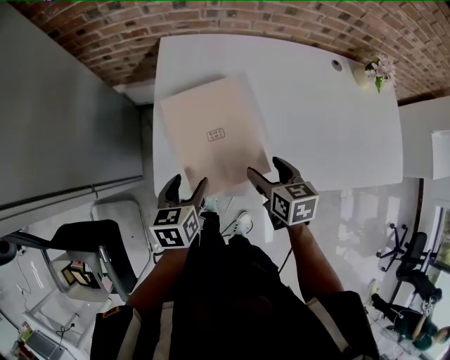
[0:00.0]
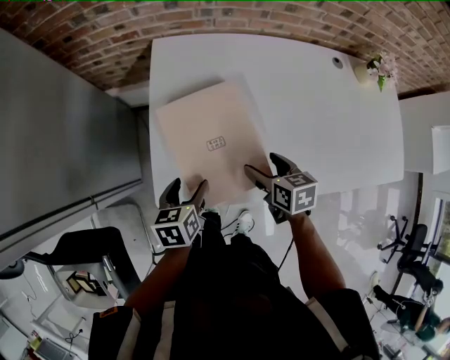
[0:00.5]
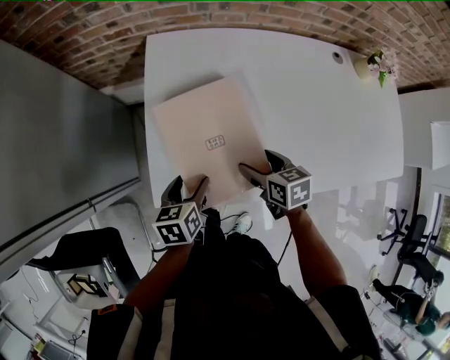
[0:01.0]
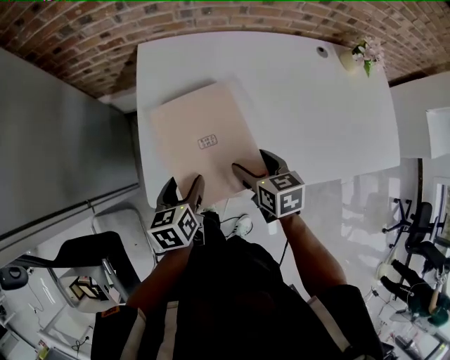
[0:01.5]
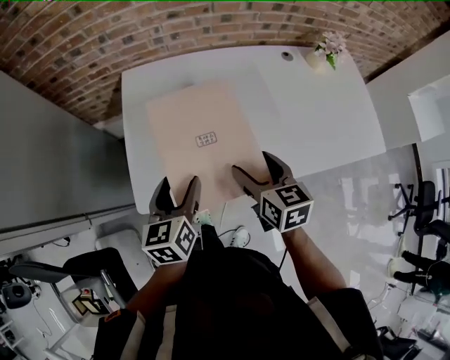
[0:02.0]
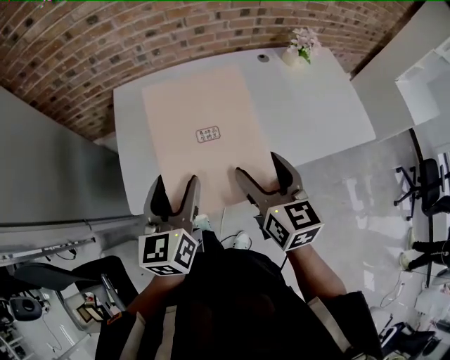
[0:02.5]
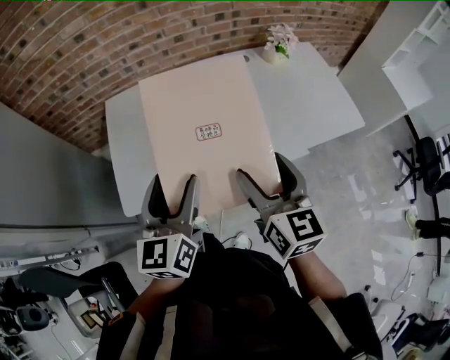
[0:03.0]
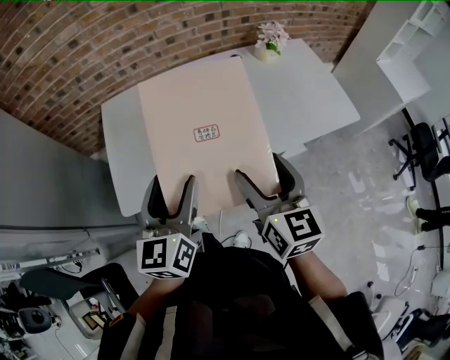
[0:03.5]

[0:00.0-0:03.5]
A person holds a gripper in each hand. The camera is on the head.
0:00.0 to 0:02.0: The grippers both shift upward by roughly 10 cm.
0:02.0 to 0:03.5: The left gripper shifts about 20 cm to the right, upward and backward, and changes its angle by some 20 degrees. The right gripper travels to the right, backward and upward by some 25 cm, and turns by some 20 degrees.

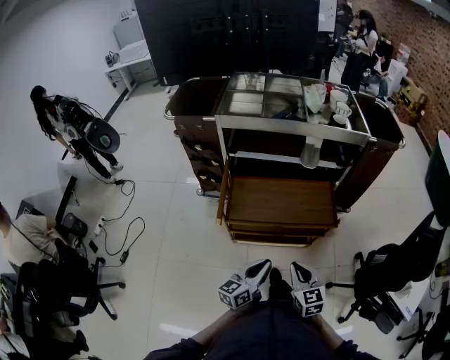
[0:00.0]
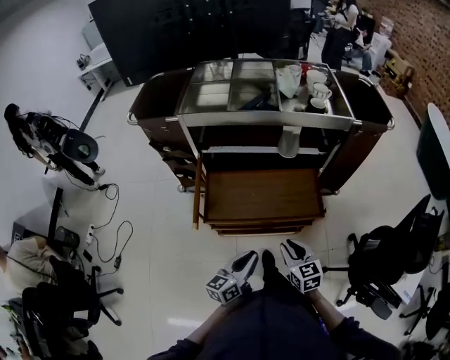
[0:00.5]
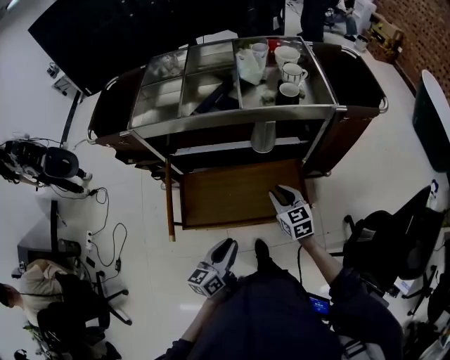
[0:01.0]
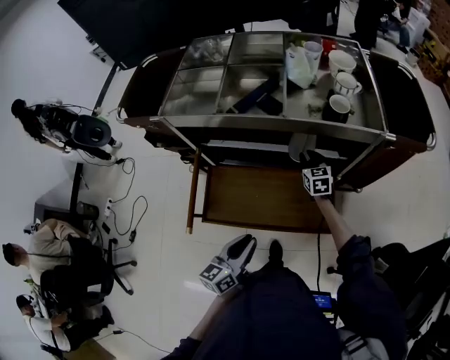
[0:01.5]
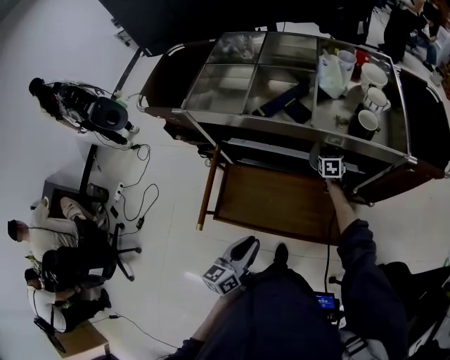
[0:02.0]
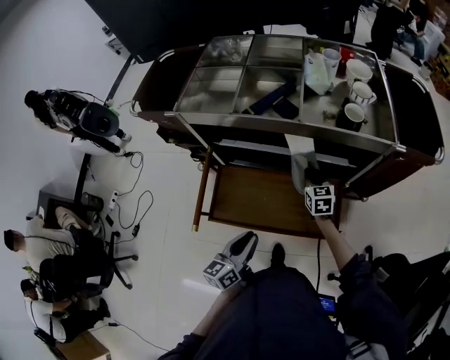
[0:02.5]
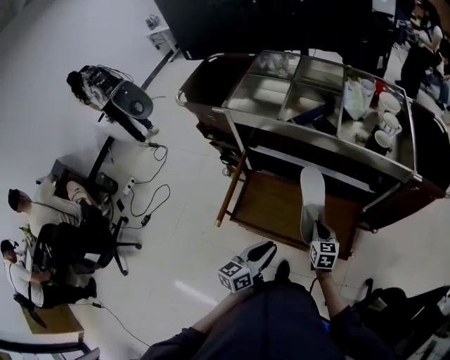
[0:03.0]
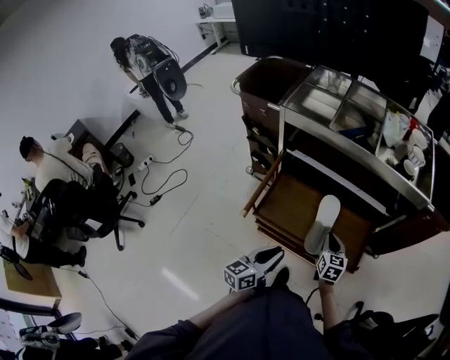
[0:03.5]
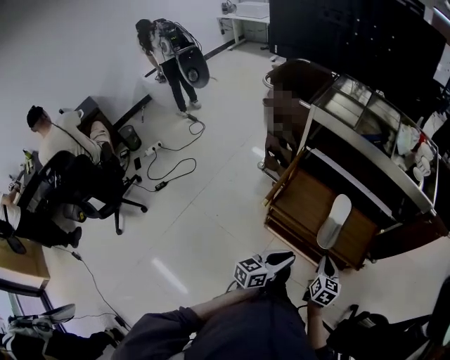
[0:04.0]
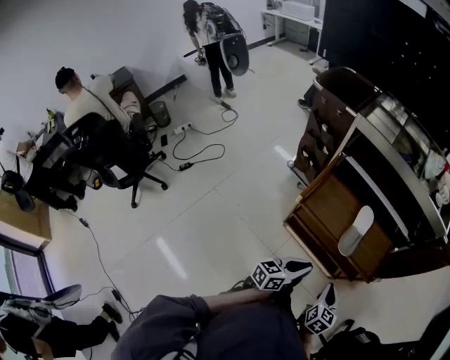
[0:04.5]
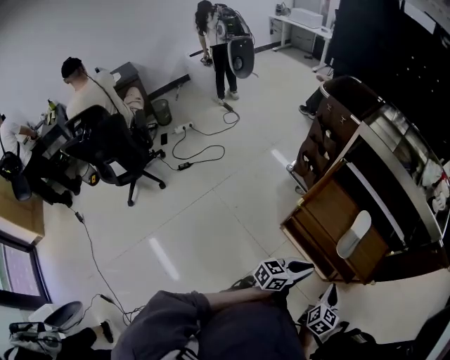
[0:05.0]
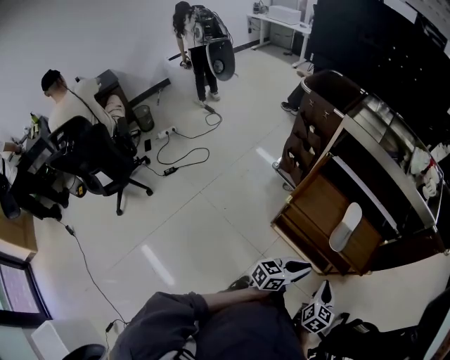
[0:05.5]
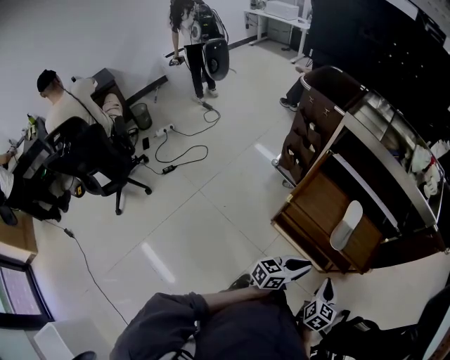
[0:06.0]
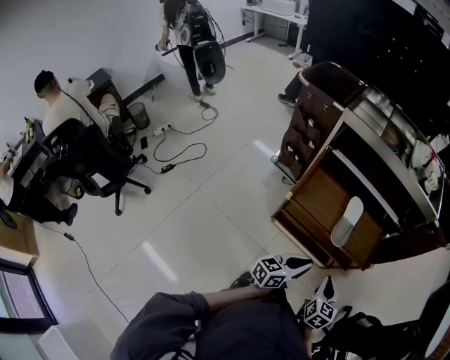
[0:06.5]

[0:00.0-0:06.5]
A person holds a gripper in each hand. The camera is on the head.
0:00.0 to 0:02.0: The right gripper is displaced forward by about 60 cm, and rotates about 20 degrees; the left gripper goes approximately 25 cm forward.
0:02.0 to 0:04.5: The right gripper moves backward, some 60 cm. Meanwhile the left gripper goes some 25 cm backward.
0:04.5 to 0:06.5: The grippers move only a little.

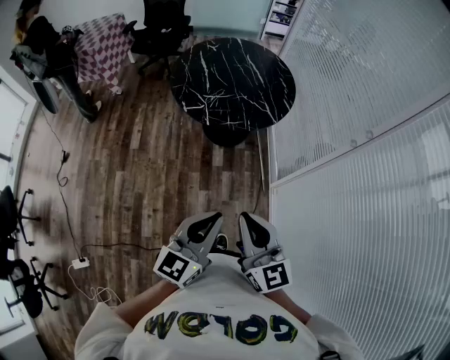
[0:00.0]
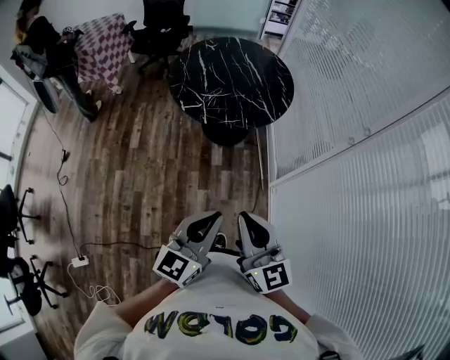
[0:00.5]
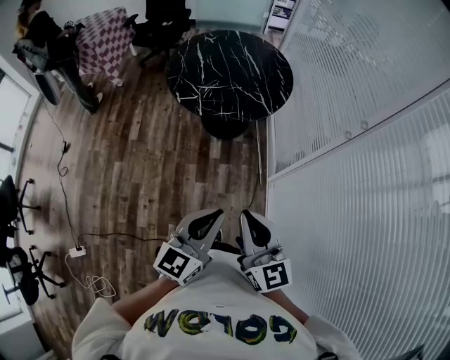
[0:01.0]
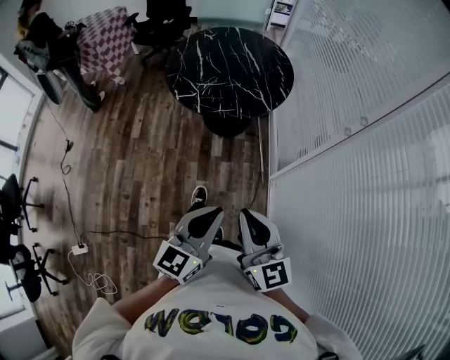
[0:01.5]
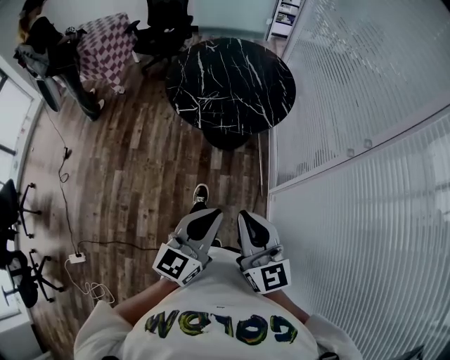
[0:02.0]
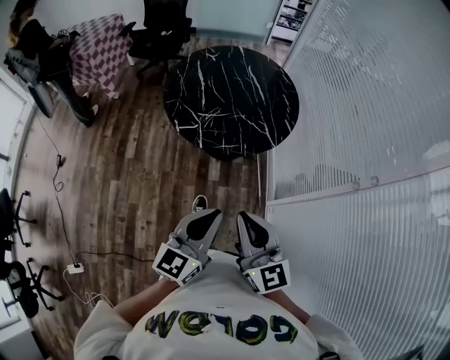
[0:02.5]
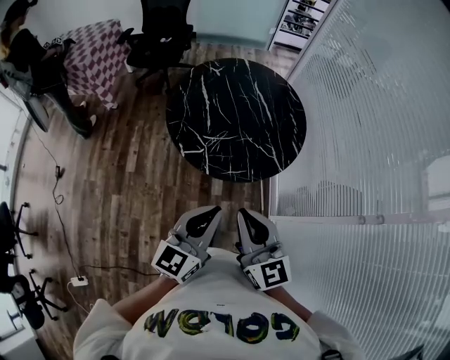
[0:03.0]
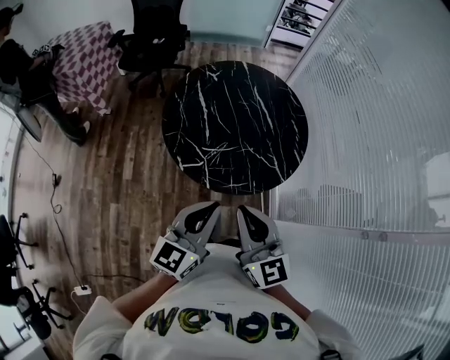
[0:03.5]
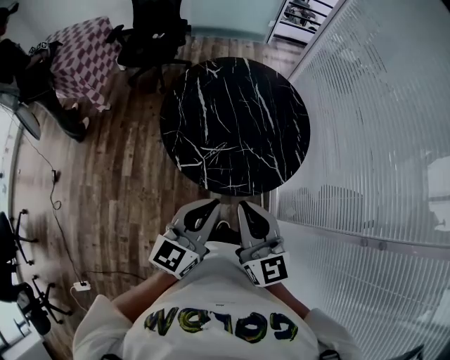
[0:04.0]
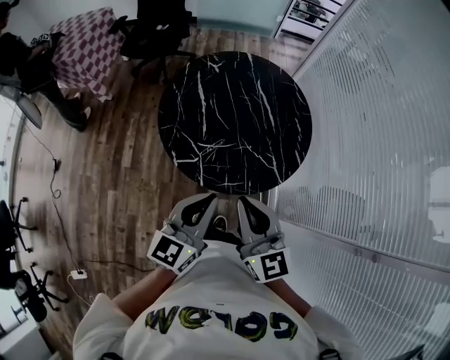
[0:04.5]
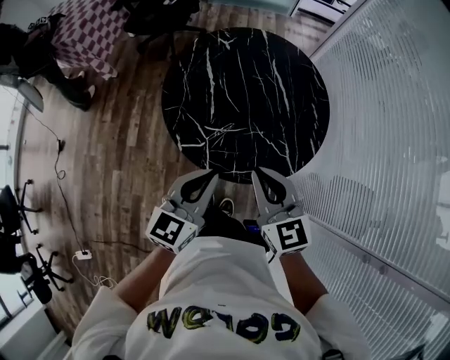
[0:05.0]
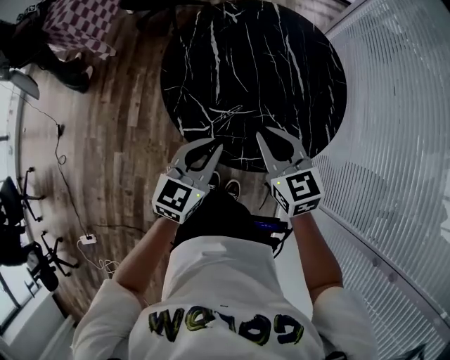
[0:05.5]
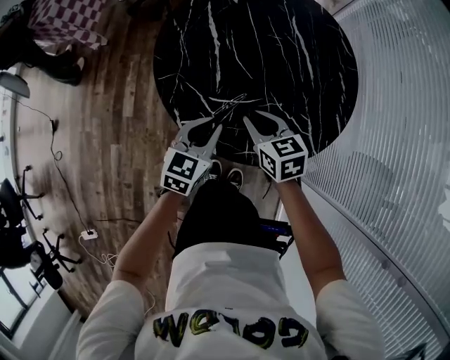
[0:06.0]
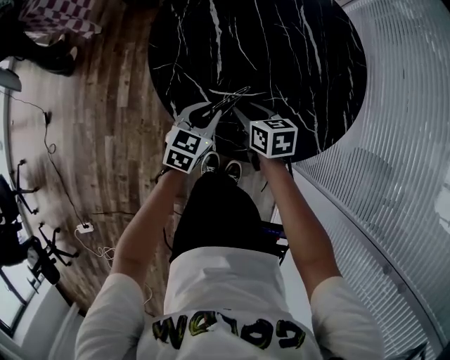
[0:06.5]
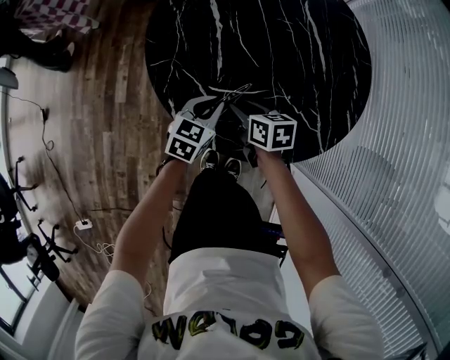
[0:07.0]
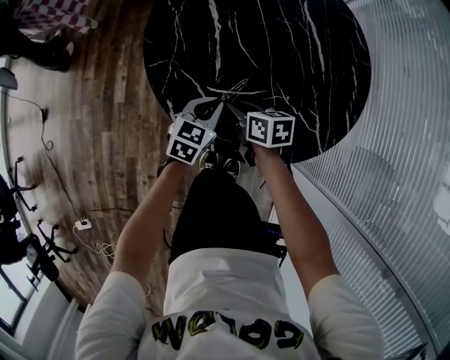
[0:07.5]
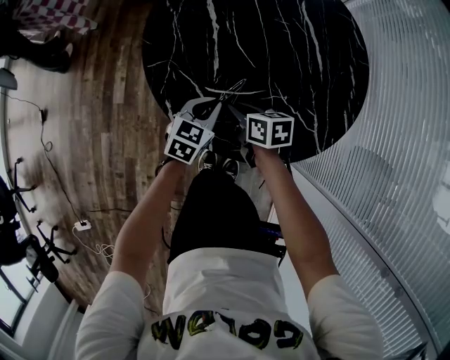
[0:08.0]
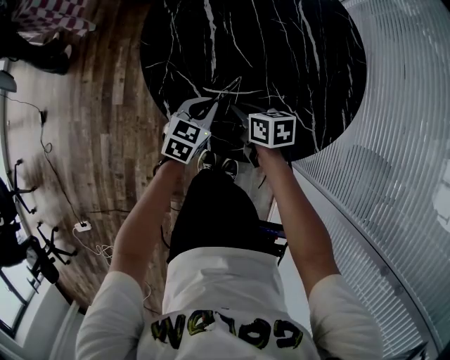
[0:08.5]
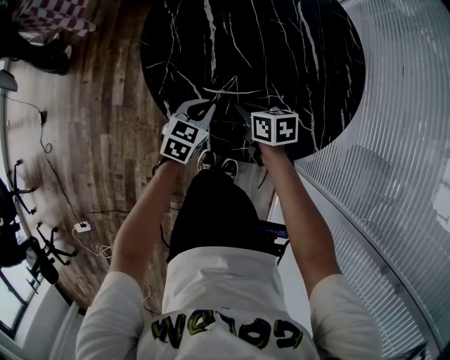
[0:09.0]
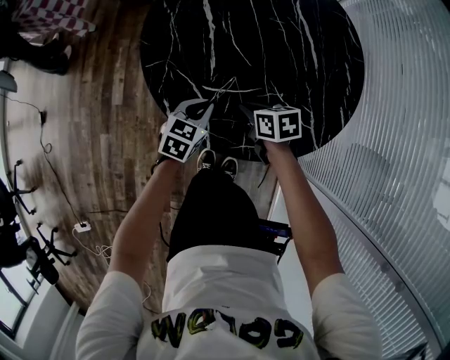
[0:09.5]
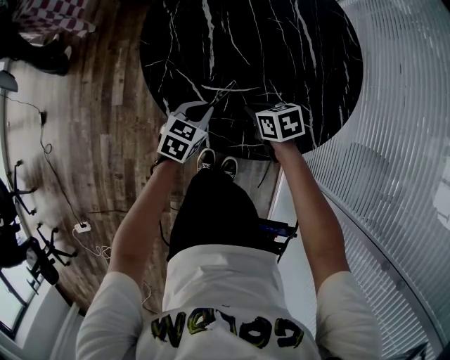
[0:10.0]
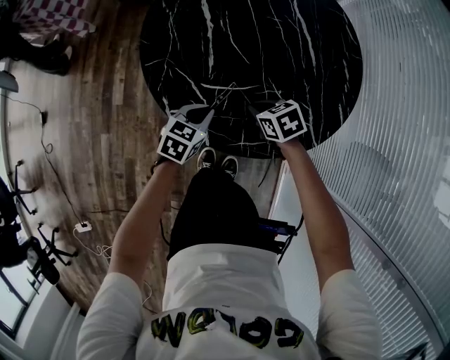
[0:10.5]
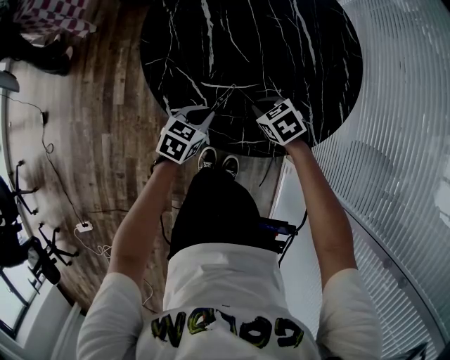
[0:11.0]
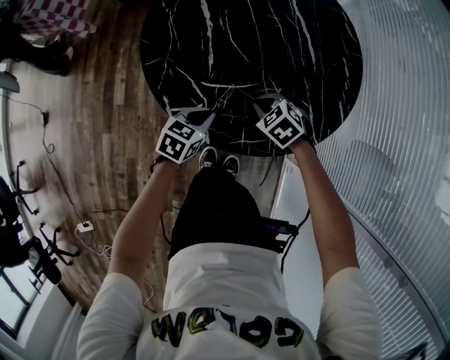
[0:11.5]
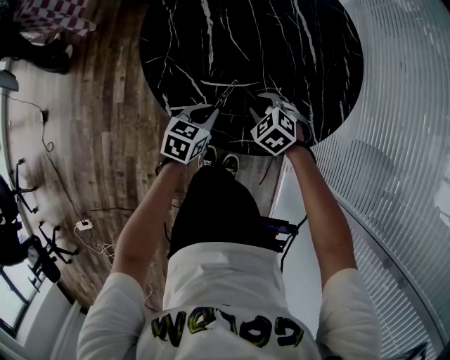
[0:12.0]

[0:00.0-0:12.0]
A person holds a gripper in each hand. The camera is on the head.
0:00.0 to 0:02.0: The two grippers go some 5 cm to the right.
0:02.0 to 0:04.0: Both grippers move forward, about 35 cm.
0:04.0 to 0:06.0: The grippers both shift downward and forward by approximately 35 cm. The left gripper rotates about 30 degrees, while the right gripper points its fingers about 30 degrees further downward.
0:06.0 to 0:08.0: The two grippers go approximately 10 cm downward. The right gripper turns by roughly 30 degrees.
0:08.0 to 0:10.0: The right gripper is displaced to the right by roughly 5 cm.
0:10.0 to 0:12.0: The right gripper twists about 50 degrees counterclockwise, seen from behind, and opens up.

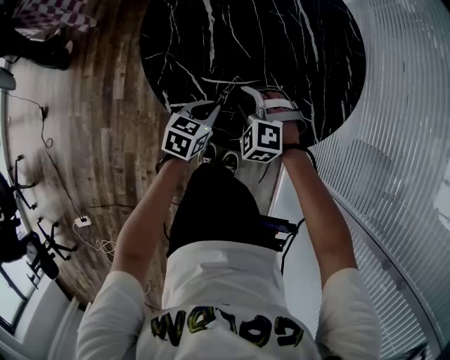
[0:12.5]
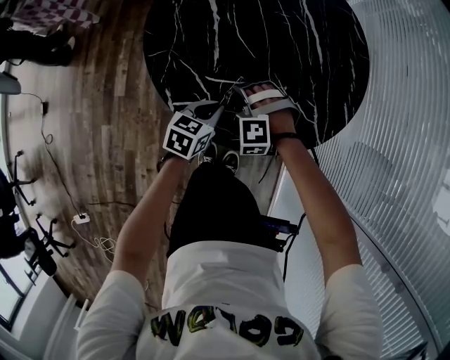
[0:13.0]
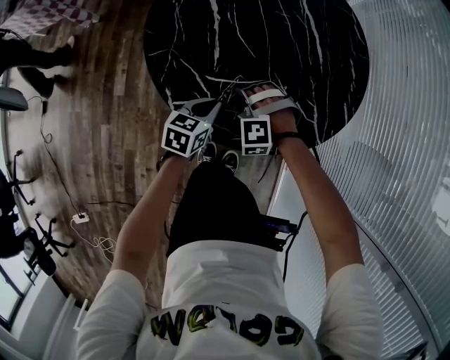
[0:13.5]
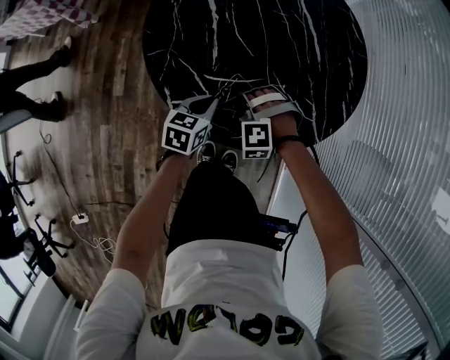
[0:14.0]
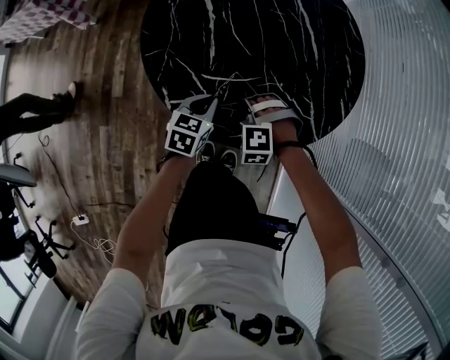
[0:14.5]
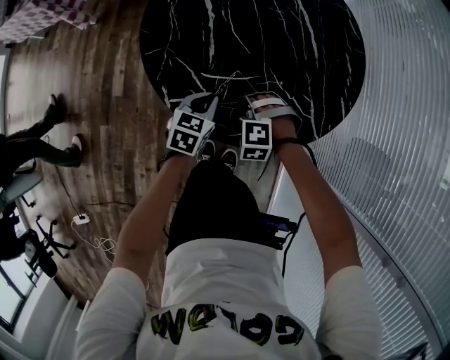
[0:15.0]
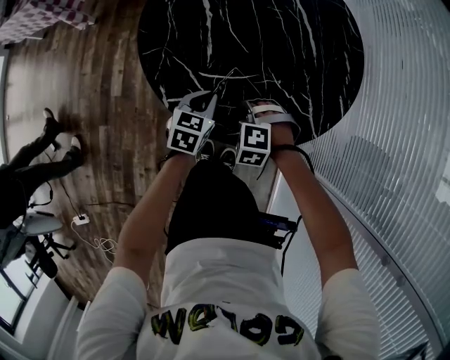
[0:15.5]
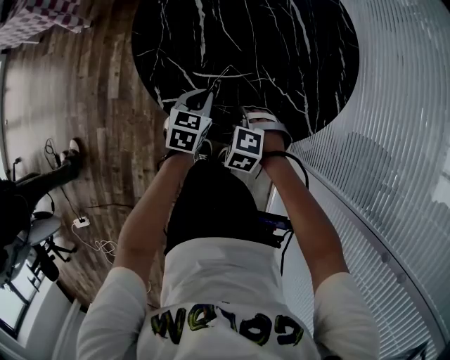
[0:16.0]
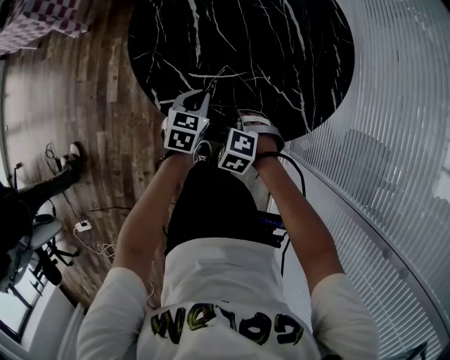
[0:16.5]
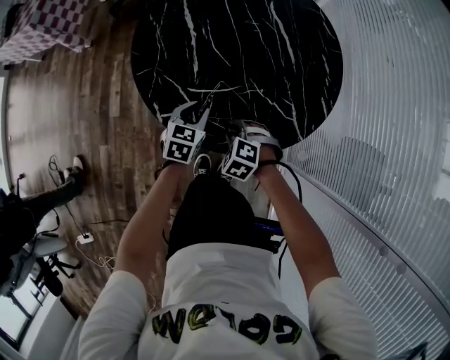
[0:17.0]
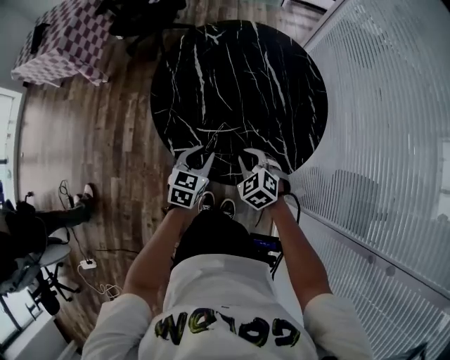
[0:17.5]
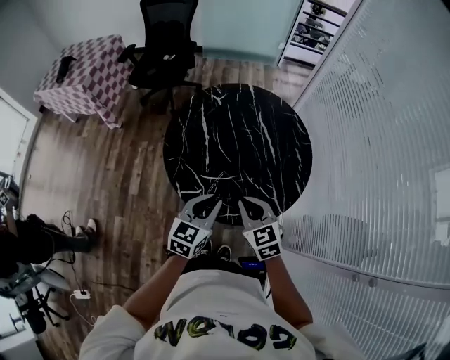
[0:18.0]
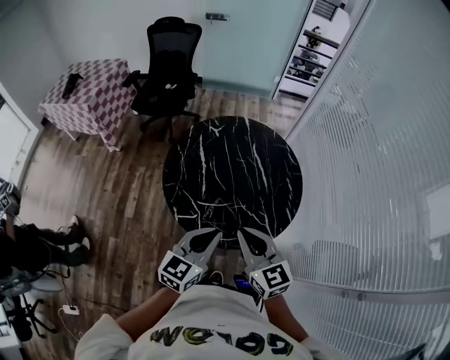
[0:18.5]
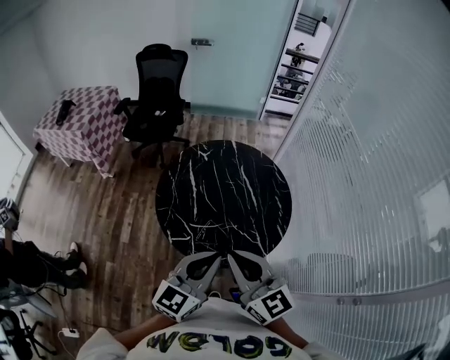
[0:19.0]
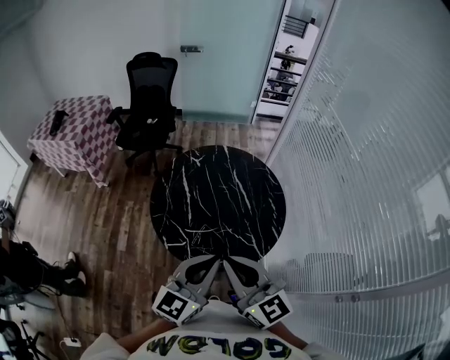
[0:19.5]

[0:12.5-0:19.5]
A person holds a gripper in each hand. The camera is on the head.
0:12.5 to 0:14.5: The right gripper closes its fingers.
0:14.5 to 0:16.0: The right gripper swivels about 20 degrees.
0:16.0 to 0:17.5: The grippers both shift upward by approximately 10 cm. The right gripper rotates roughly 30 degrees, while the left gripper opens up.
0:17.5 to 0:19.5: The grippers both shift upward by about 40 cm. The left gripper angles its fingers upward, by approximately 40 degrees, and closes up. The right gripper angles its fingers upward, by some 50 degrees.
